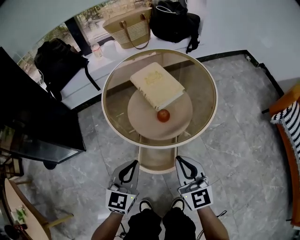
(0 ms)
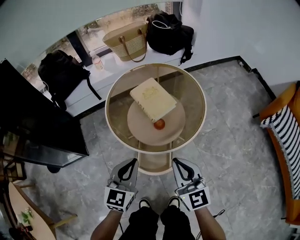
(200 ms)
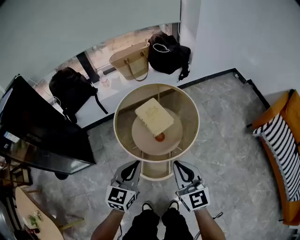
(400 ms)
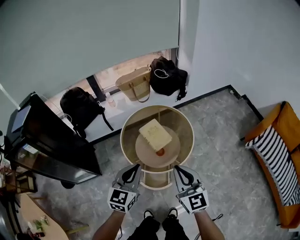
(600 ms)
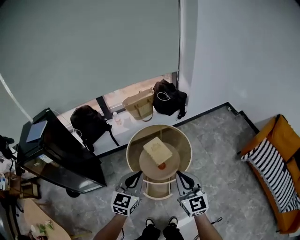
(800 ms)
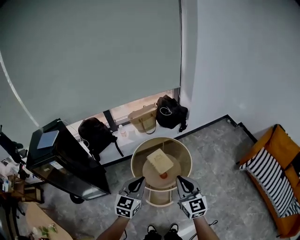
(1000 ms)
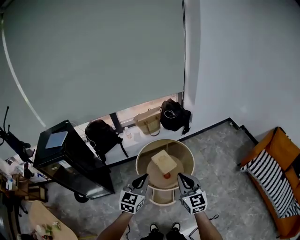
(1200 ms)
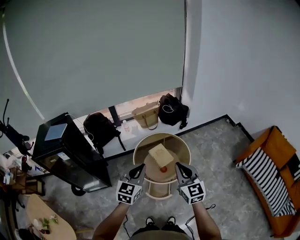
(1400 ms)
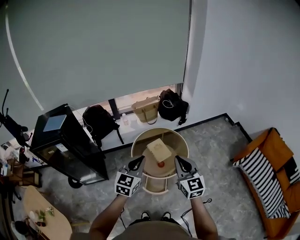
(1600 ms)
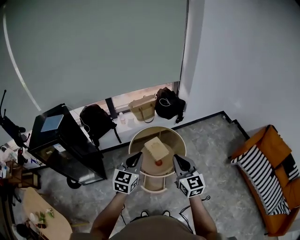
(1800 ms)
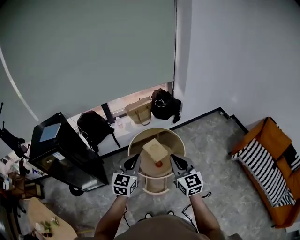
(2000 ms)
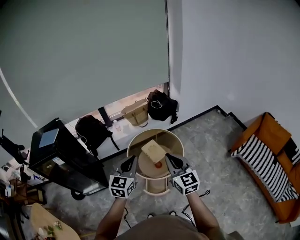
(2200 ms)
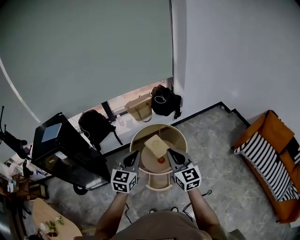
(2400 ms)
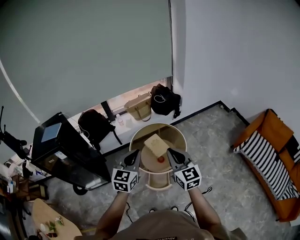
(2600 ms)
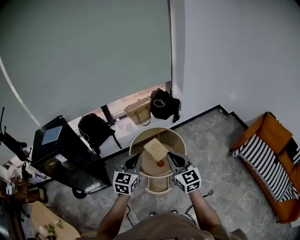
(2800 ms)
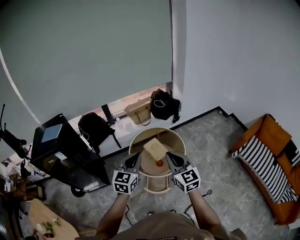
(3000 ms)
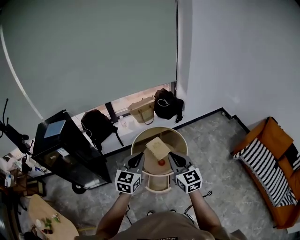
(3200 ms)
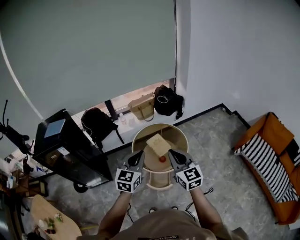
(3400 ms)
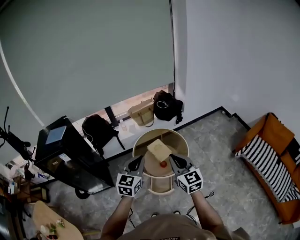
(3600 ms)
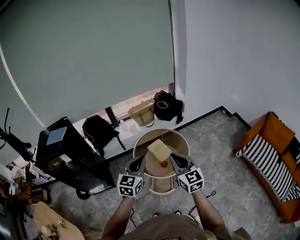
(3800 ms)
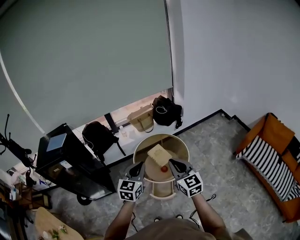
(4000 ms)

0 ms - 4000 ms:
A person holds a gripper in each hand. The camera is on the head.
0 ms - 1400 ms: Both grippers move upward, some 60 cm.
1400 ms - 4000 ms: The grippers move only a little.

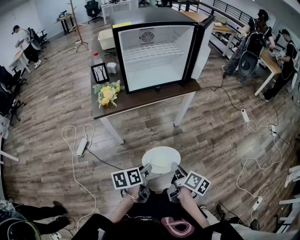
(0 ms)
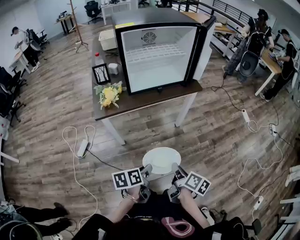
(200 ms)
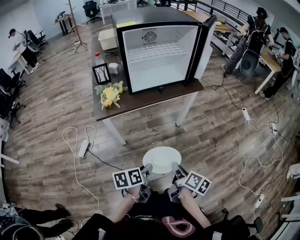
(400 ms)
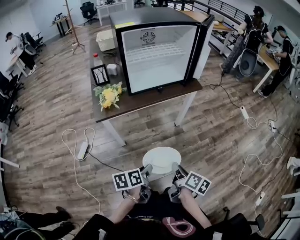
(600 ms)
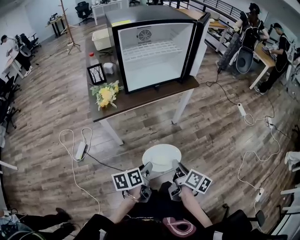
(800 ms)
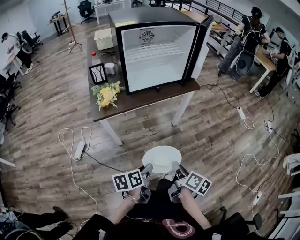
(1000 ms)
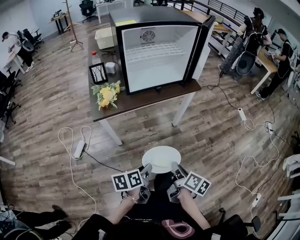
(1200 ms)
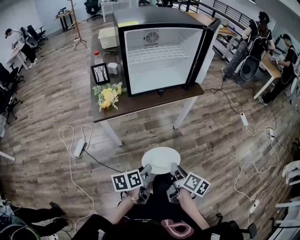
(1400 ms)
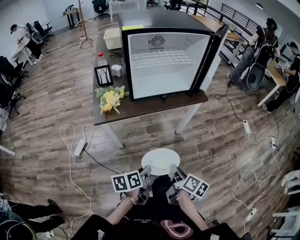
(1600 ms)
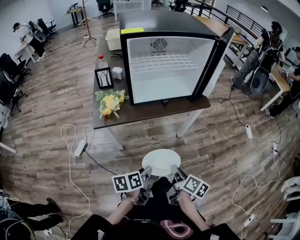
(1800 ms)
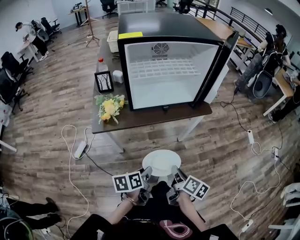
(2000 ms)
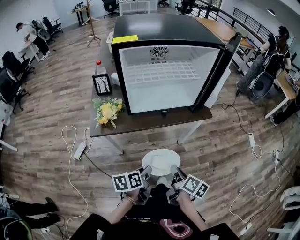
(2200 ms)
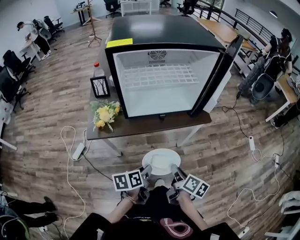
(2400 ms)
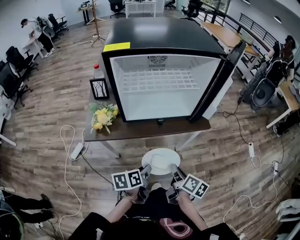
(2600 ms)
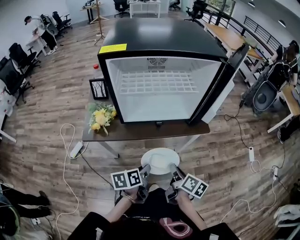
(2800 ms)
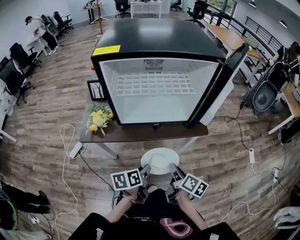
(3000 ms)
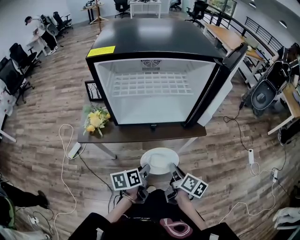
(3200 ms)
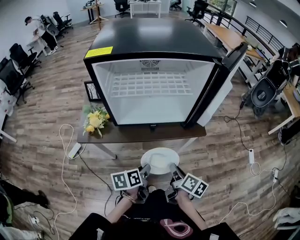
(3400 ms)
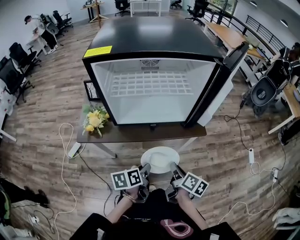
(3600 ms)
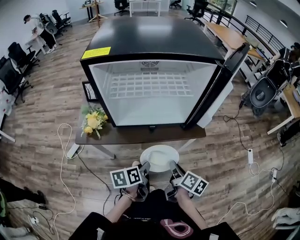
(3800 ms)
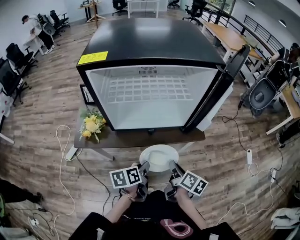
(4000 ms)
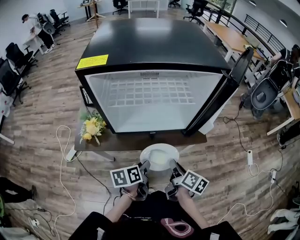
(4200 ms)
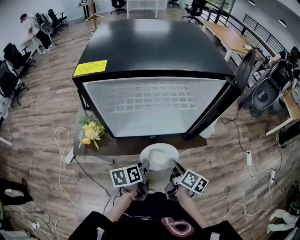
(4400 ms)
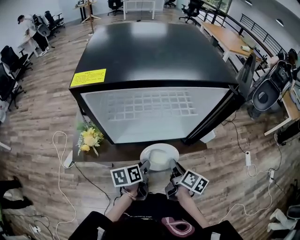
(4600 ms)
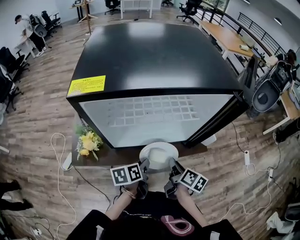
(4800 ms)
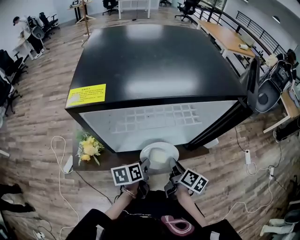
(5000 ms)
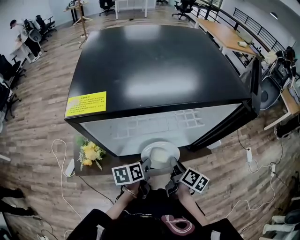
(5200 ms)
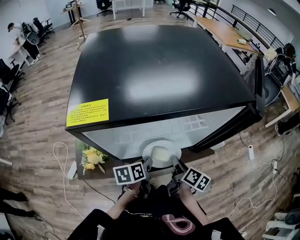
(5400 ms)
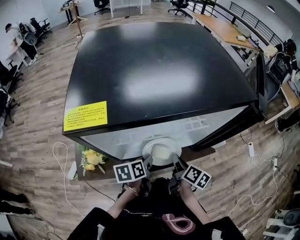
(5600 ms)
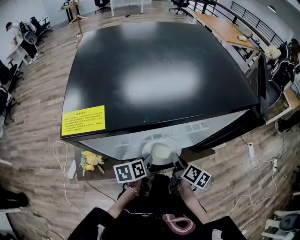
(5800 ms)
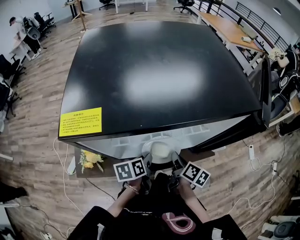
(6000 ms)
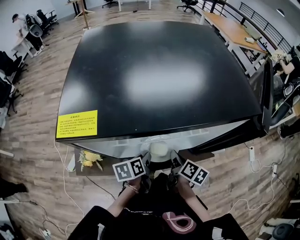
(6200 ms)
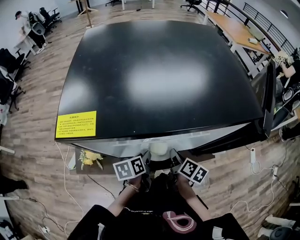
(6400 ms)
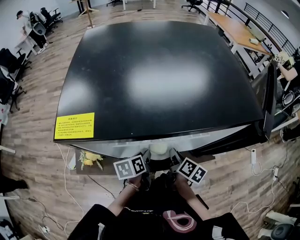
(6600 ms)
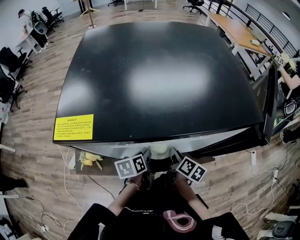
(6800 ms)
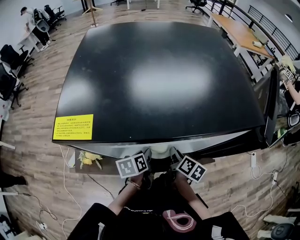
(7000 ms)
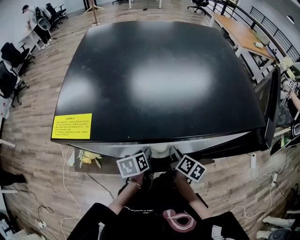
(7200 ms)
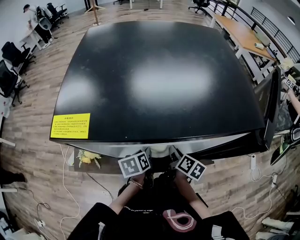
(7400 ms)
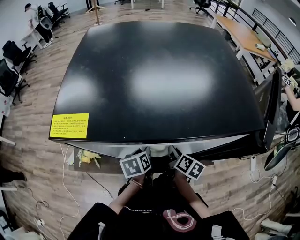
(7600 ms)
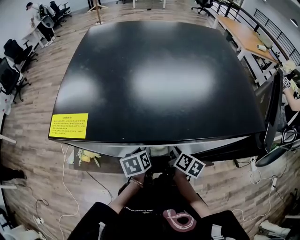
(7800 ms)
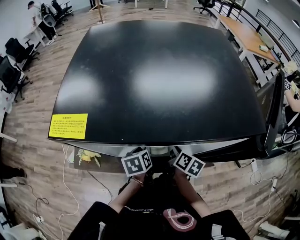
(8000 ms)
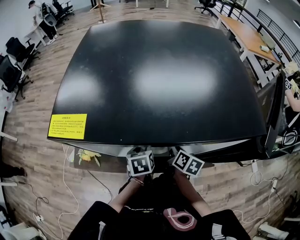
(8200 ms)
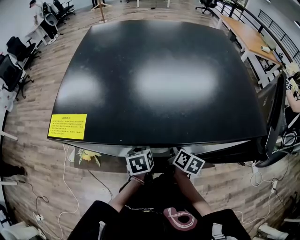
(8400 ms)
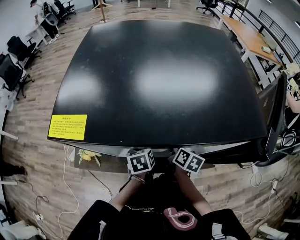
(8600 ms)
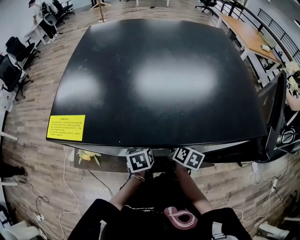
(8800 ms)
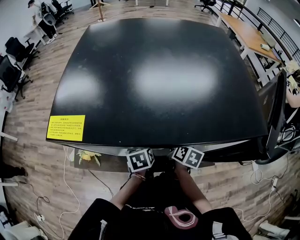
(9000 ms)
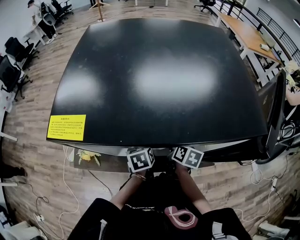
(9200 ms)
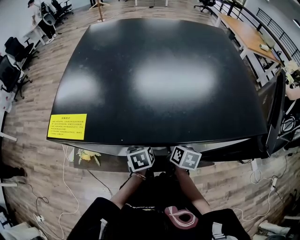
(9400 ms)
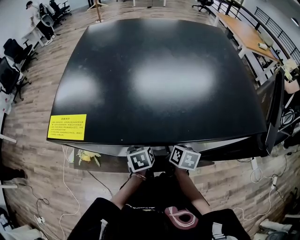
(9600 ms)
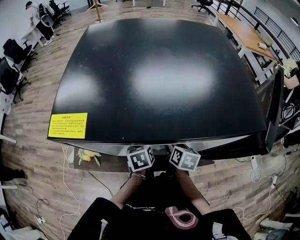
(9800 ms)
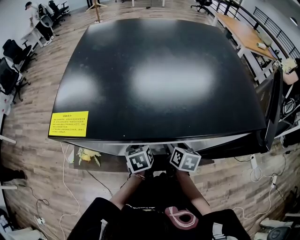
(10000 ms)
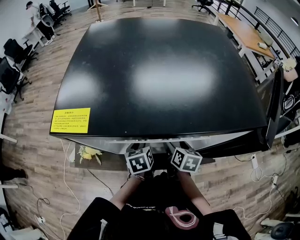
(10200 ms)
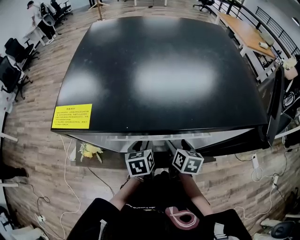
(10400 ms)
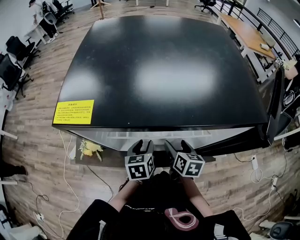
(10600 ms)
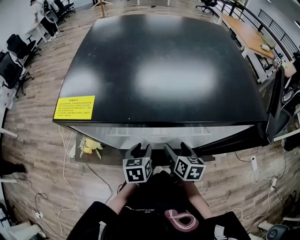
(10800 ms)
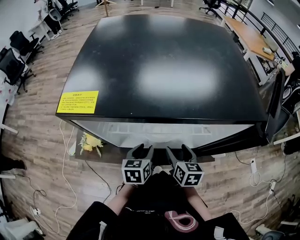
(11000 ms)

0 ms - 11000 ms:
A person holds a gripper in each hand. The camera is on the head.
0 ms - 1600 ms: The grippers both shift forward by roughly 5 cm.
1600 ms - 3200 ms: The left gripper moves forward and to the right, about 25 cm. The right gripper shifts roughly 25 cm forward.
3200 ms - 4800 ms: The two grippers go approximately 15 cm forward.
4800 ms - 6200 ms: Both grippers travel together forward, some 10 cm.
6200 ms - 7800 ms: The right gripper shifts roughly 5 cm forward.
7800 ms - 9400 ms: The grippers stay close to where they were, moving slightly.
9400 ms - 11000 ms: Both grippers move backward, about 5 cm. The right gripper opens its fingers.

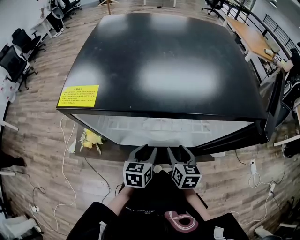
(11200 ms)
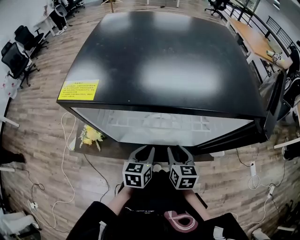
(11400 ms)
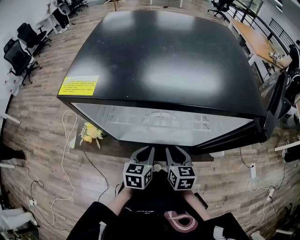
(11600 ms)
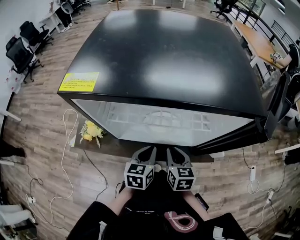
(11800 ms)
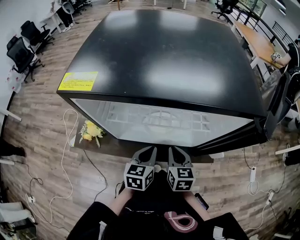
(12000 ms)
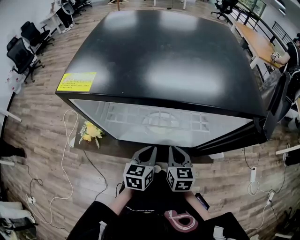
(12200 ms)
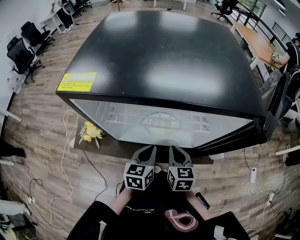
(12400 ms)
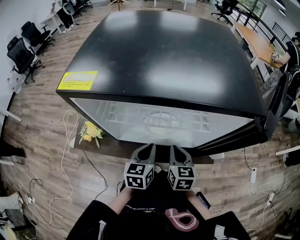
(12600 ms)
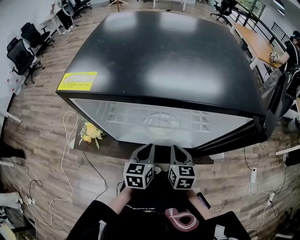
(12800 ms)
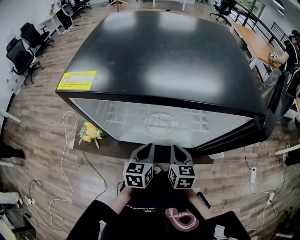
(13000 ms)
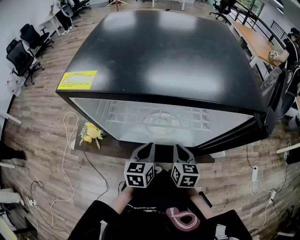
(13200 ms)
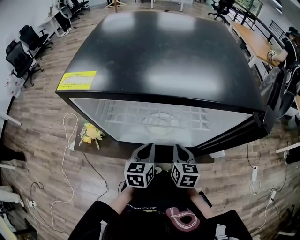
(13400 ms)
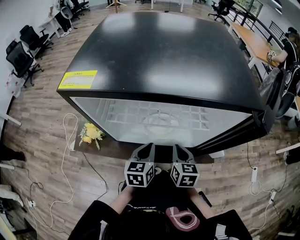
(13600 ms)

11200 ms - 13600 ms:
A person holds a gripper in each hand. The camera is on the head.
11200 ms - 12400 ms: The right gripper closes up, while the left gripper closes its fingers.
12400 ms - 13600 ms: The grippers move only a little.

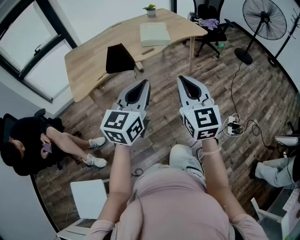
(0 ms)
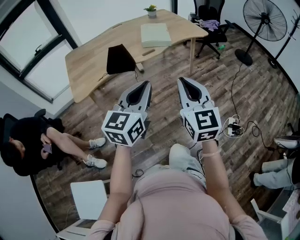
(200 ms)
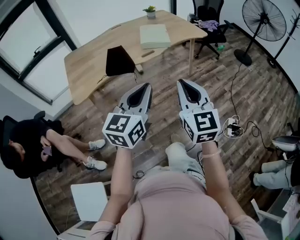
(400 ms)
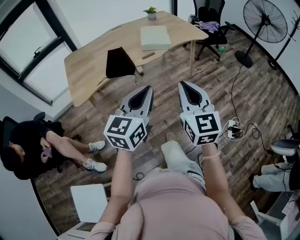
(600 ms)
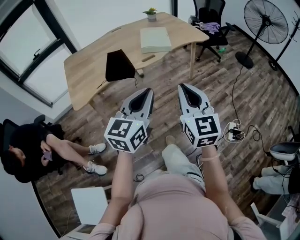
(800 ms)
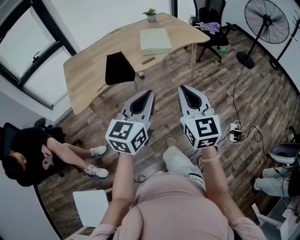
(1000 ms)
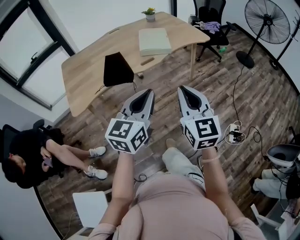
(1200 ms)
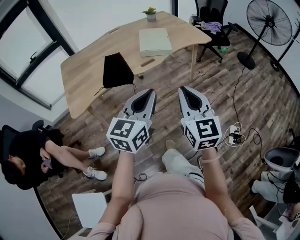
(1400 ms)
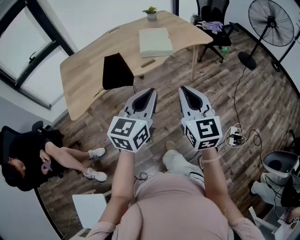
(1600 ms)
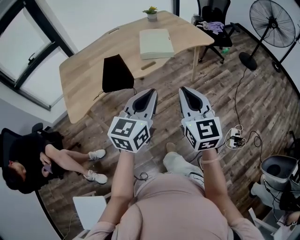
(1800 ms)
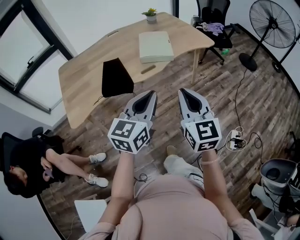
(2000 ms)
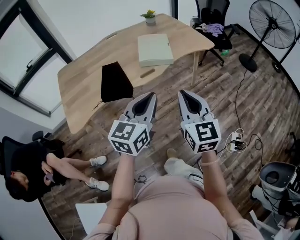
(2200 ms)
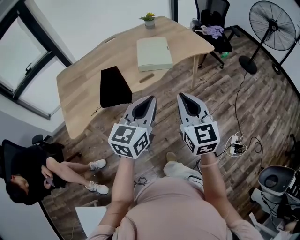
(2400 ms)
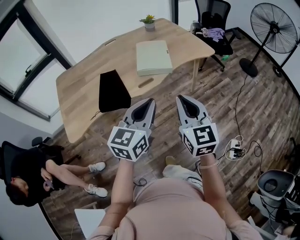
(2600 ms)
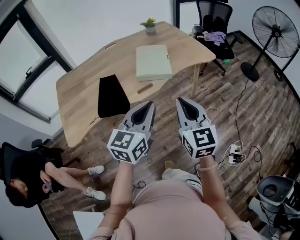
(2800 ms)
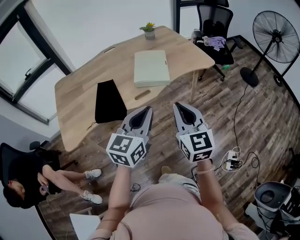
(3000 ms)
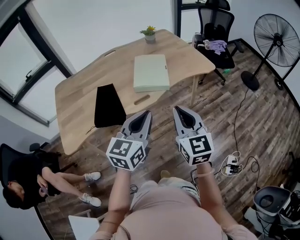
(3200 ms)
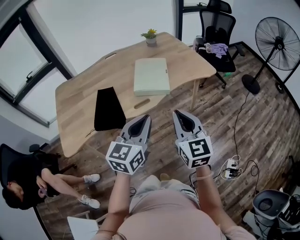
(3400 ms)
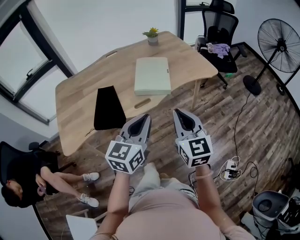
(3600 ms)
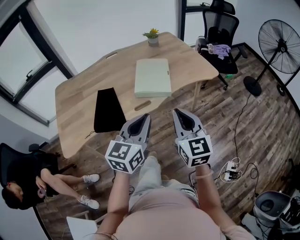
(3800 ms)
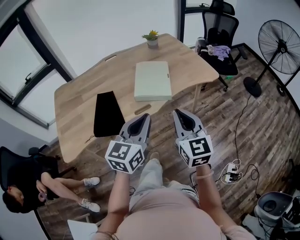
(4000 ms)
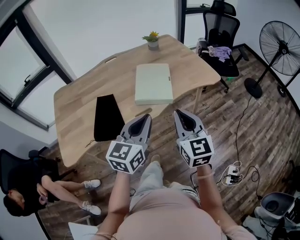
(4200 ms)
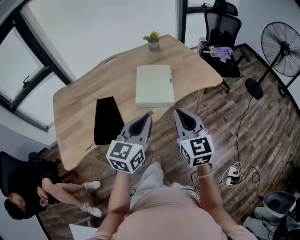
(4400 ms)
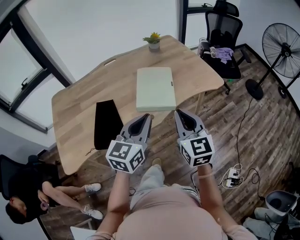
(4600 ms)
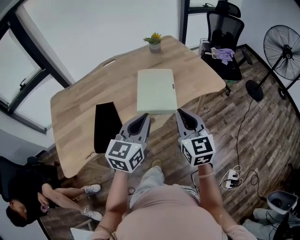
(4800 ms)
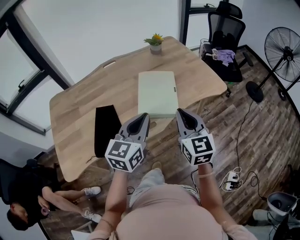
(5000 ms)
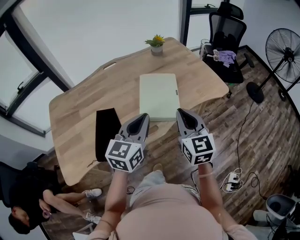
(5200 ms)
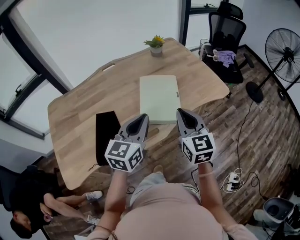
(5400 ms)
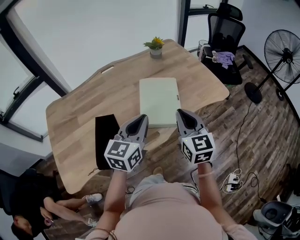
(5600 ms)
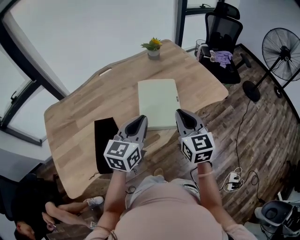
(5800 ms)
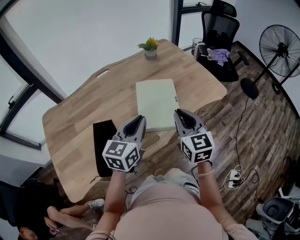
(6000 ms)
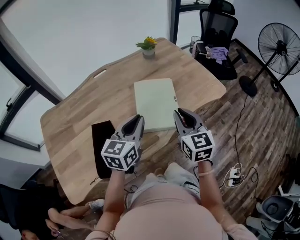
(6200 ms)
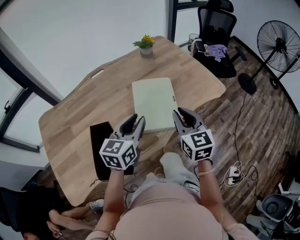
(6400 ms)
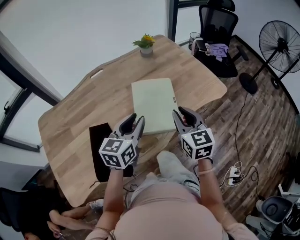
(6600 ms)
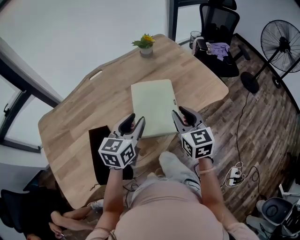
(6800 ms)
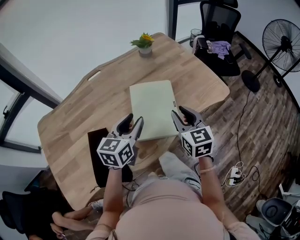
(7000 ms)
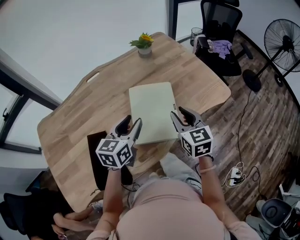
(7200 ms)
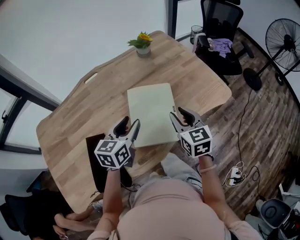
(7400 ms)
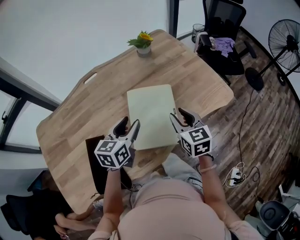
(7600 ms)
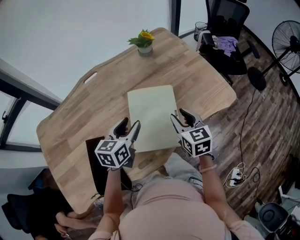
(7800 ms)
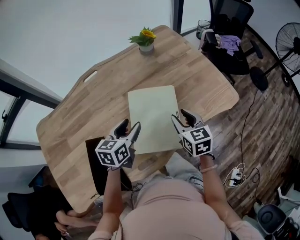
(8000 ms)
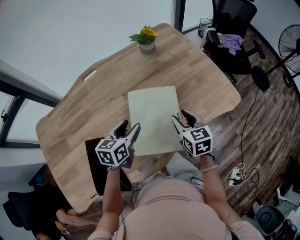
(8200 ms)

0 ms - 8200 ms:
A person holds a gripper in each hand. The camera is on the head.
0 ms - 1600 ms: Both grippers travel together forward, roughly 15 cm.
1600 ms - 3200 ms: The two grippers go approximately 20 cm forward.
3200 ms - 5000 ms: The grippers both shift forward by approximately 20 cm.
5000 ms - 6600 ms: The grippers both shift forward and downward by some 15 cm. The left gripper opens its fingers.
6600 ms - 8200 ms: Both grippers move forward and downward, roughly 20 cm.
